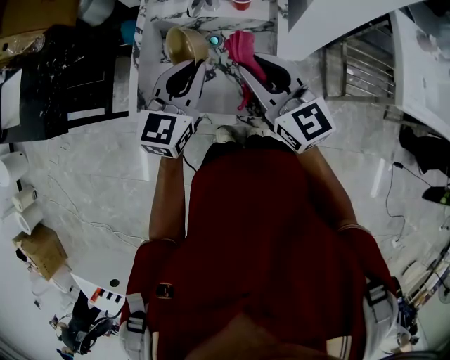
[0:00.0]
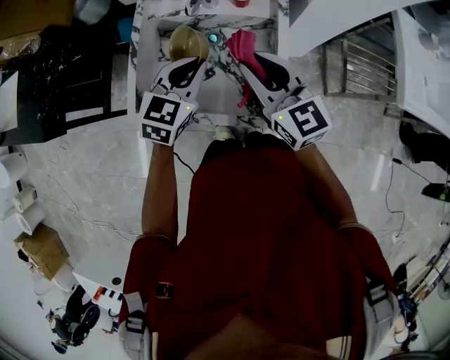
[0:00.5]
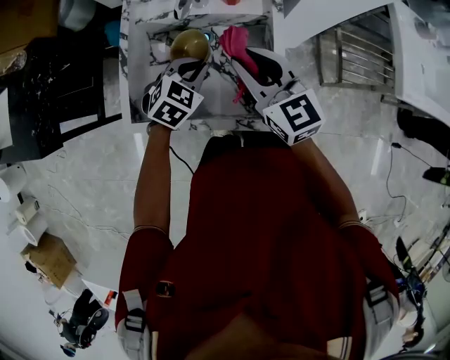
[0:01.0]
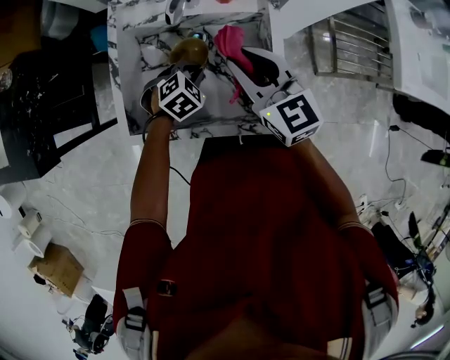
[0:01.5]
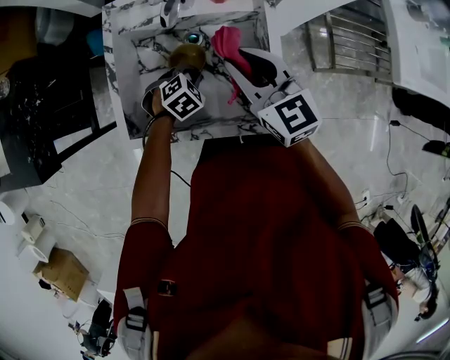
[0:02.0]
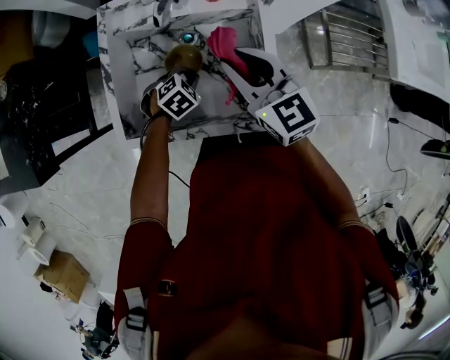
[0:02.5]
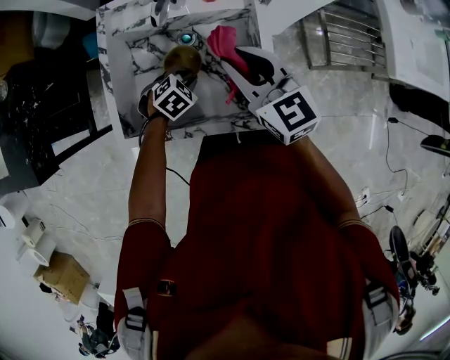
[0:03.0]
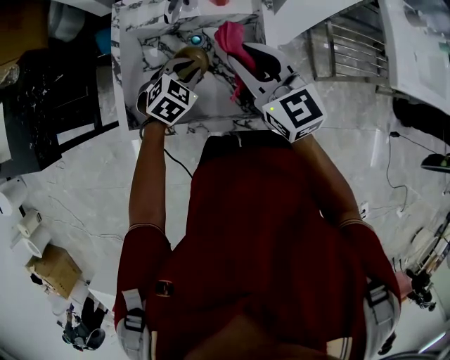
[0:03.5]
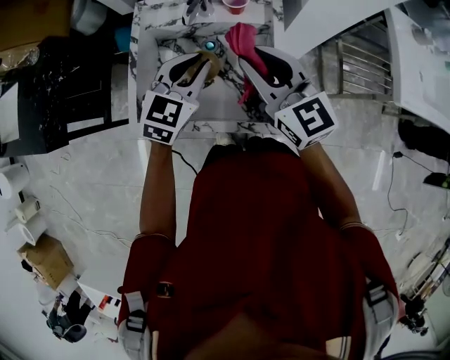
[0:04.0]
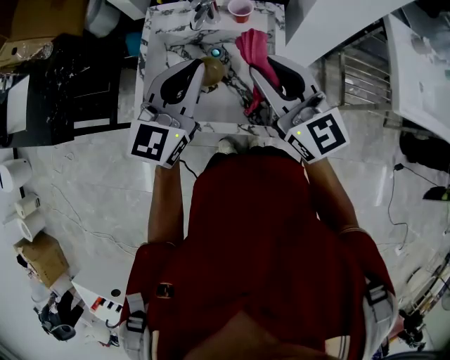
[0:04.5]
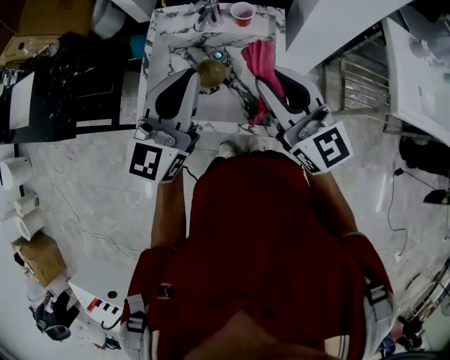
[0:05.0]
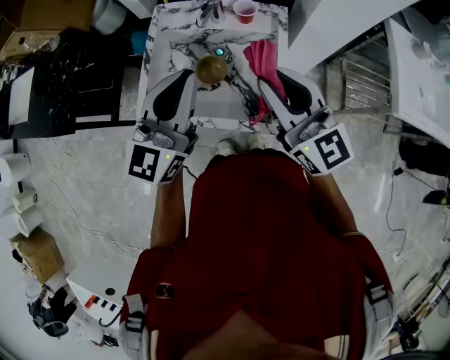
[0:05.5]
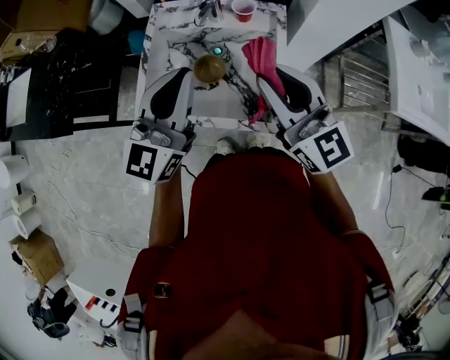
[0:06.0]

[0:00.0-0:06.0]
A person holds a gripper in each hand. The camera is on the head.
0:00.0 to 0:02.0: The left gripper heads downward, covering approximately 25 cm, and tilts its fingers approximately 50 degrees downward. The right gripper travels downward and forward by about 10 cm.
0:02.0 to 0:04.0: The left gripper is displaced upward by some 25 cm, and angles its fingers upward, by roughly 40 degrees. The right gripper is displaced upward by approximately 10 cm.
0:04.0 to 0:06.0: The left gripper shifts roughly 15 cm upward and backward, and tilts its fingers approximately 30 degrees upward. The right gripper shifts about 10 cm backward and upward.

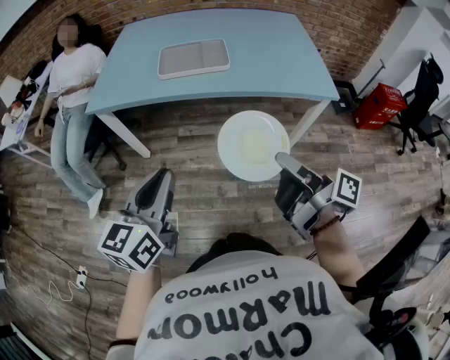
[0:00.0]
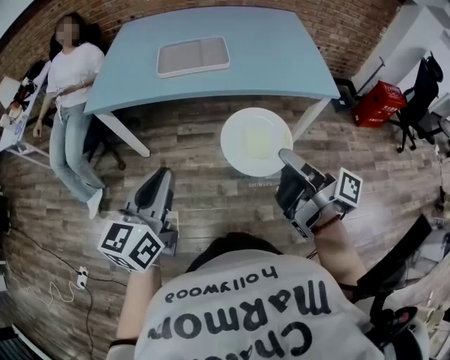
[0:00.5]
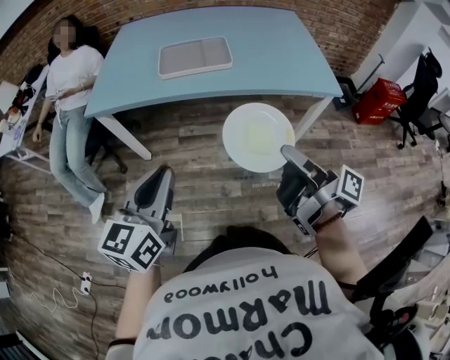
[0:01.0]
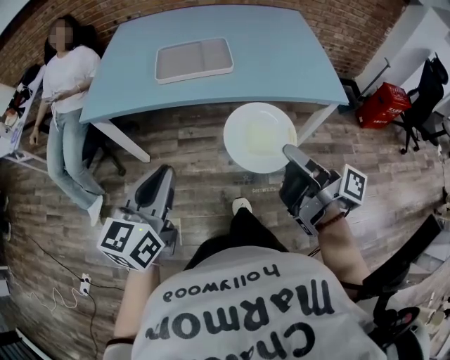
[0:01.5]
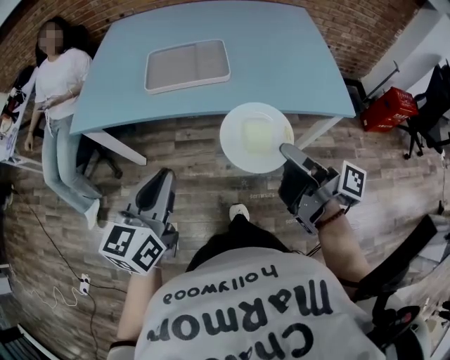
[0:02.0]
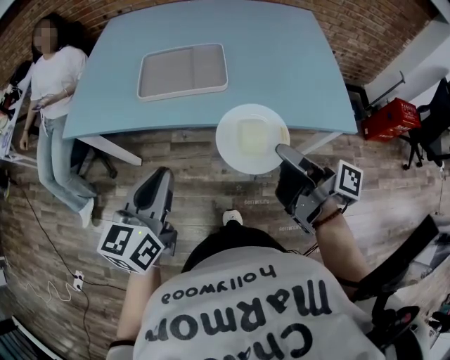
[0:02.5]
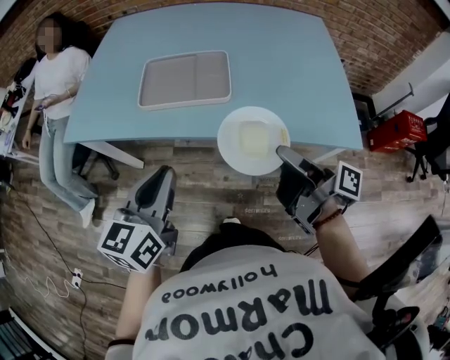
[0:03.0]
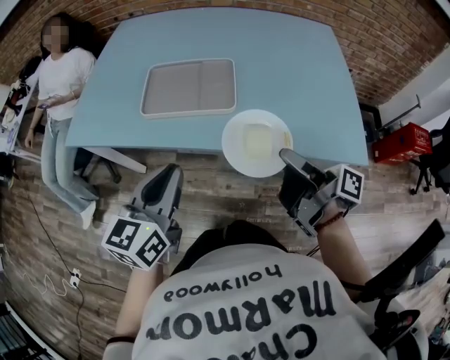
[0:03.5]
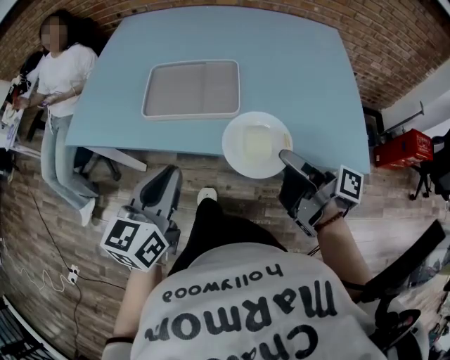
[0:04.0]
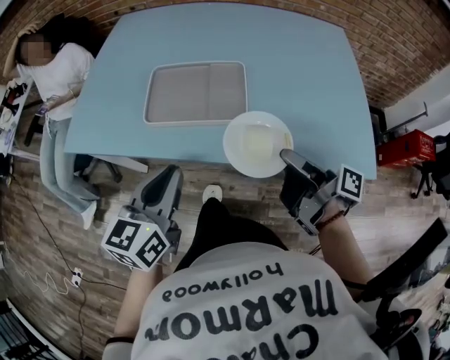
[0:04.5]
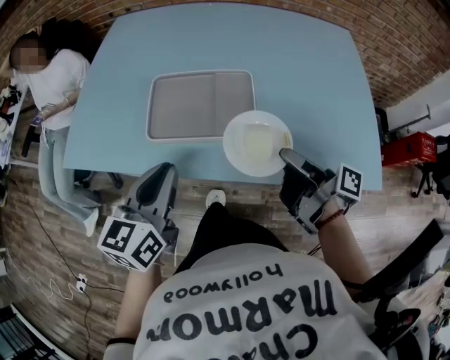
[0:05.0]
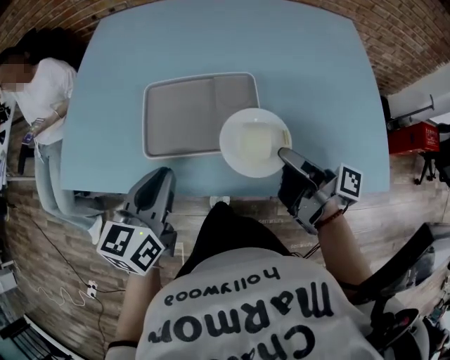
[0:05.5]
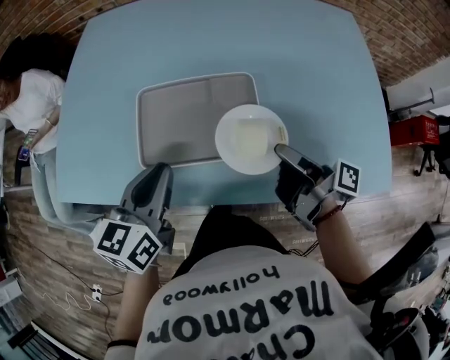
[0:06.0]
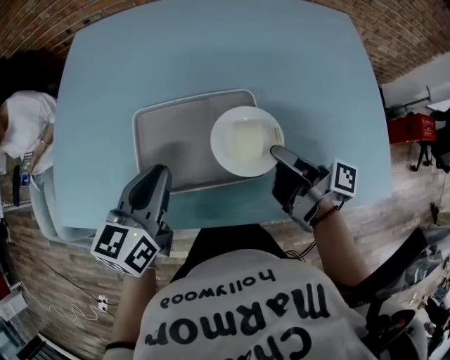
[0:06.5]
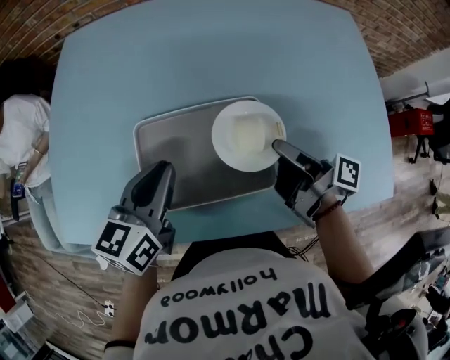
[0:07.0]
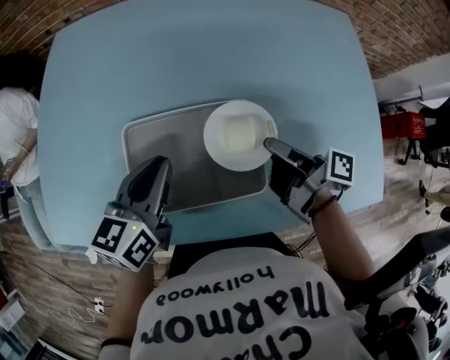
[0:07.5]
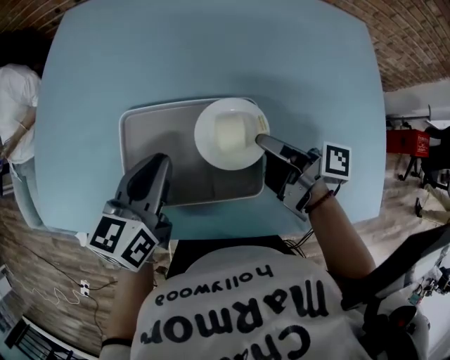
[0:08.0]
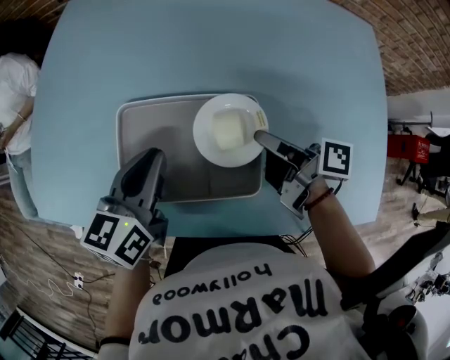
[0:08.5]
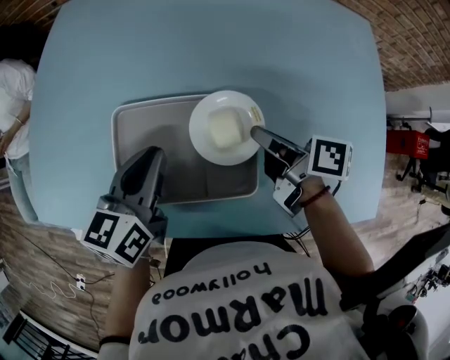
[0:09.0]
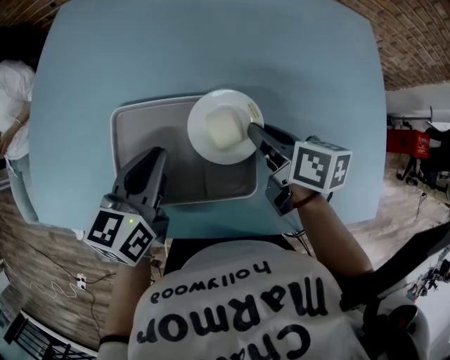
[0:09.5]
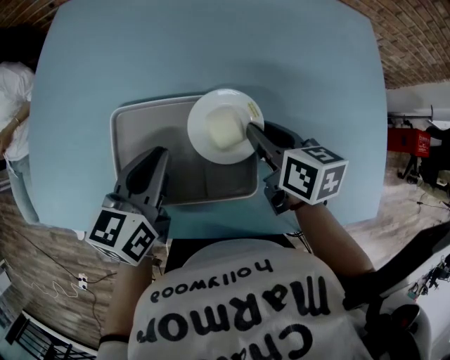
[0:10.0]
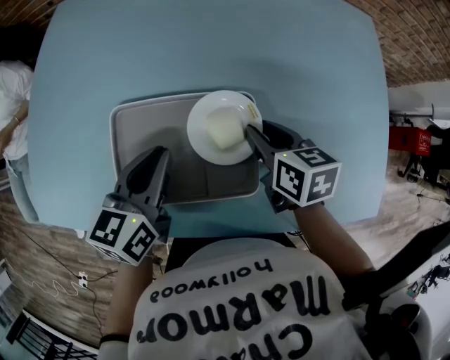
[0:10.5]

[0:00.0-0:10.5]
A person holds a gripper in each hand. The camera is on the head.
0:00.0 to 0:02.0: The left gripper moves some 15 cm.
0:02.0 to 0:04.0: The left gripper changes place by approximately 15 cm.
0:04.0 to 0:06.5: The left gripper changes place by some 25 cm.
0:06.5 to 0:08.5: The left gripper shifts by approximately 10 cm.

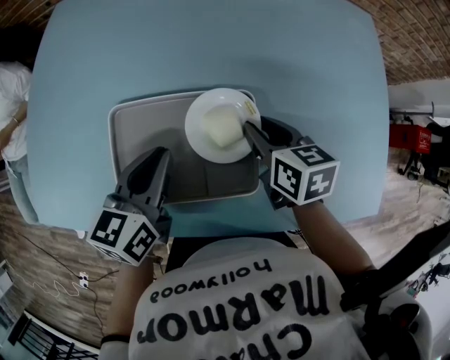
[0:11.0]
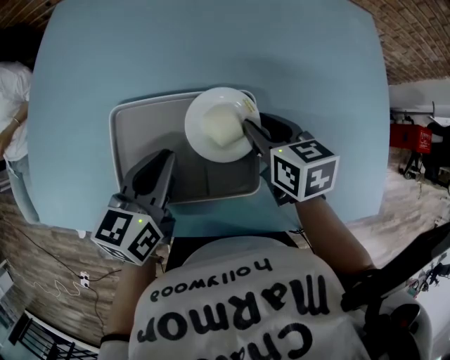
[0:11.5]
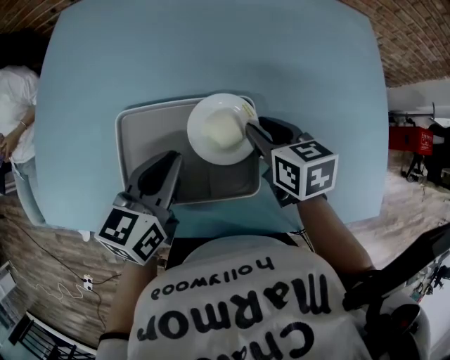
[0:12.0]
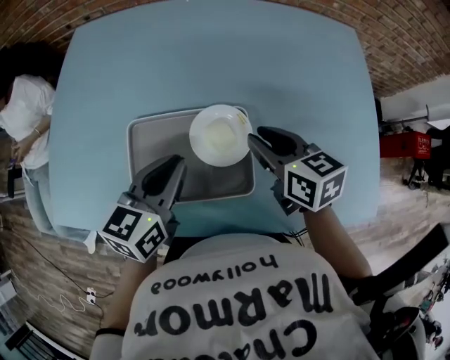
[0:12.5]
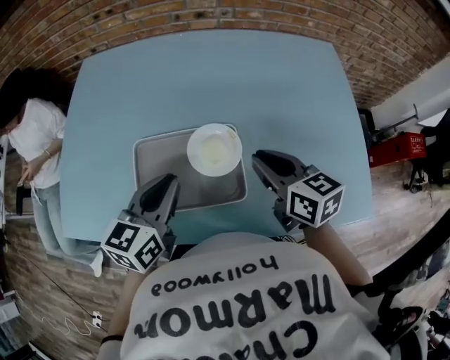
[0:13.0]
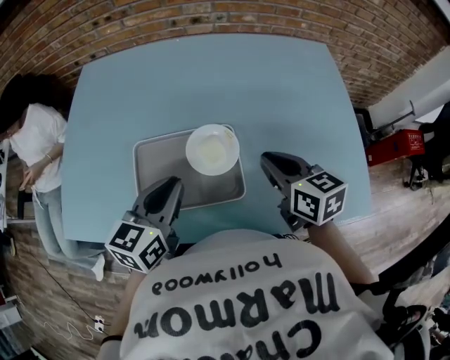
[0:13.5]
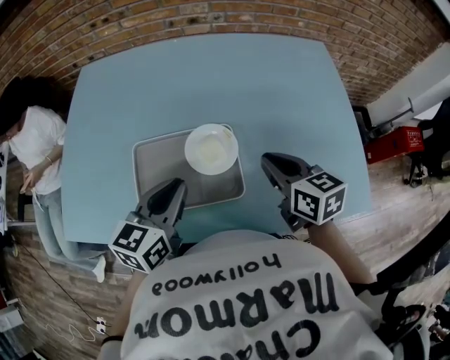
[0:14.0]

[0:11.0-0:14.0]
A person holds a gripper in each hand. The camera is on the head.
0:11.0 to 0:12.5: The left gripper moves upward, approximately 5 cm.
0:12.5 to 0:14.0: The left gripper moves about 5 cm.

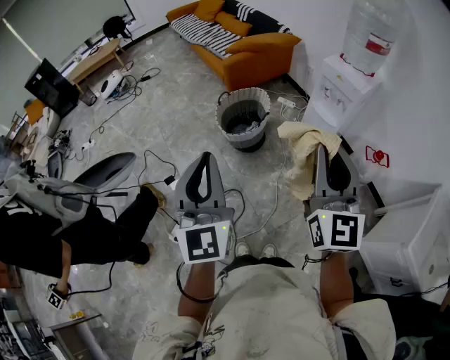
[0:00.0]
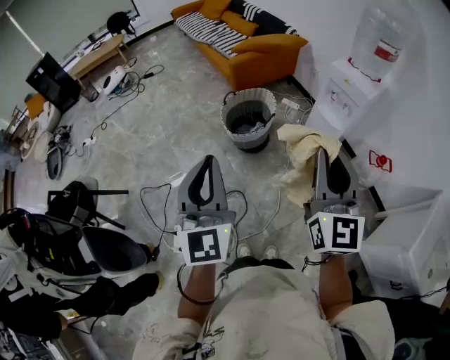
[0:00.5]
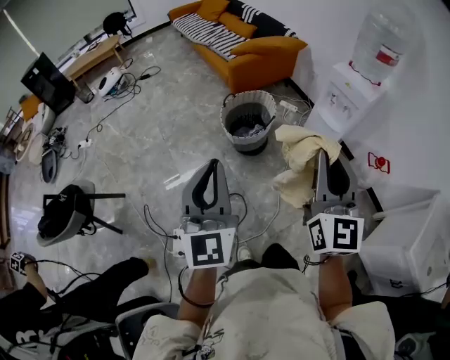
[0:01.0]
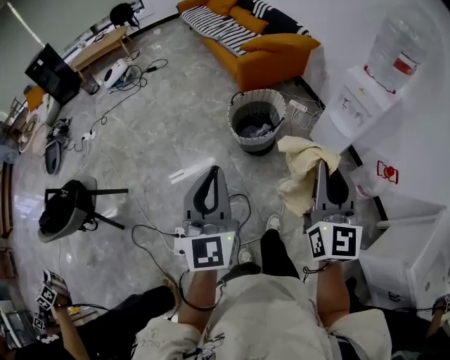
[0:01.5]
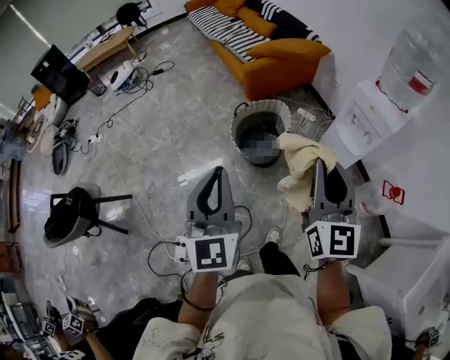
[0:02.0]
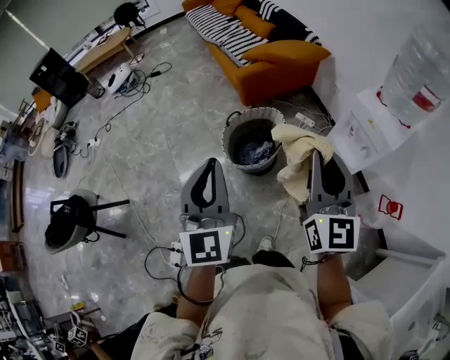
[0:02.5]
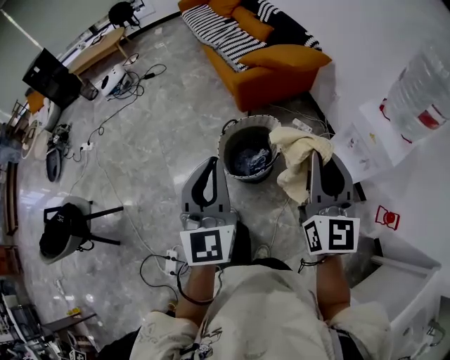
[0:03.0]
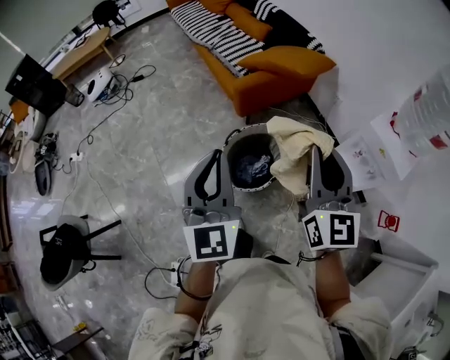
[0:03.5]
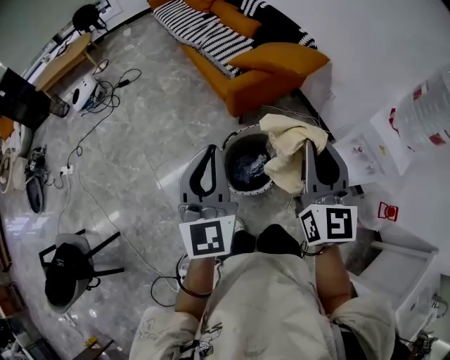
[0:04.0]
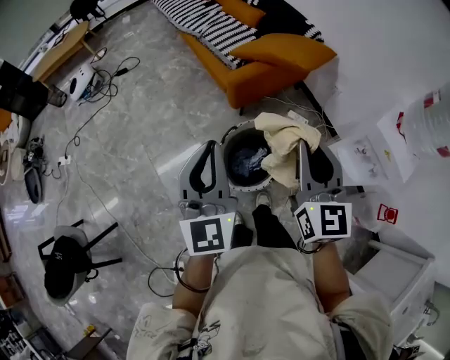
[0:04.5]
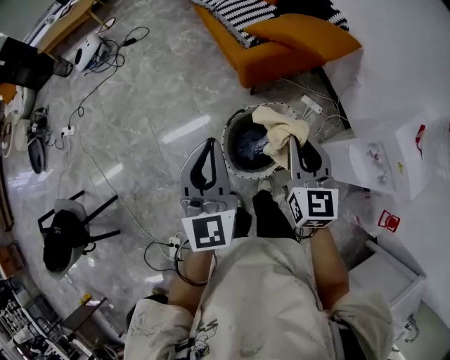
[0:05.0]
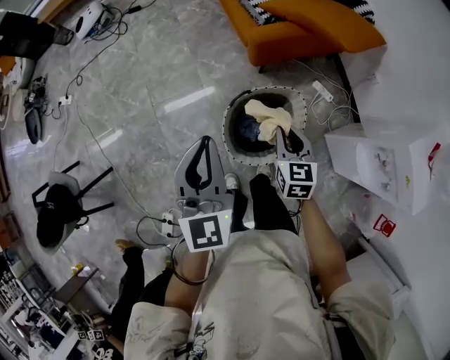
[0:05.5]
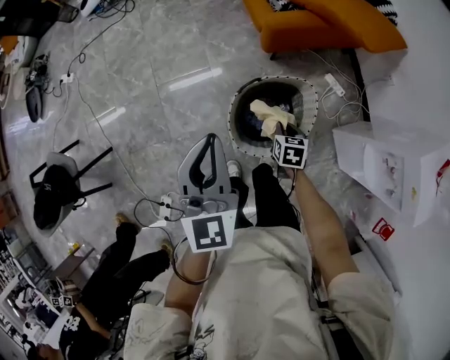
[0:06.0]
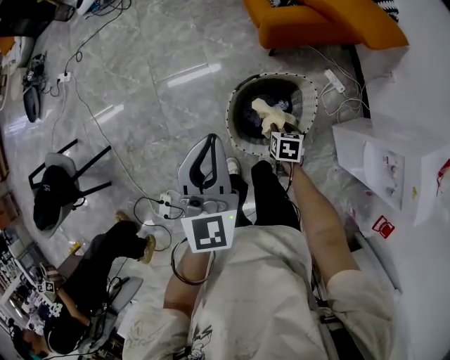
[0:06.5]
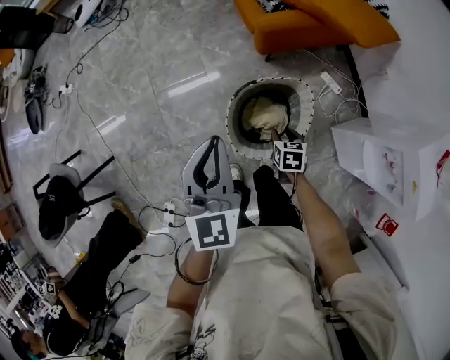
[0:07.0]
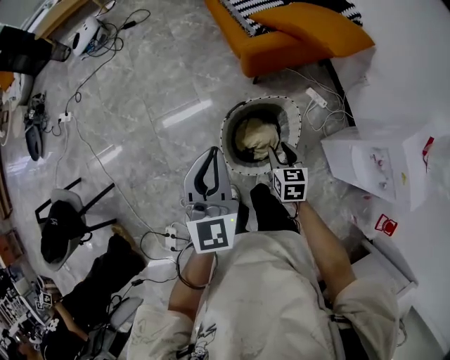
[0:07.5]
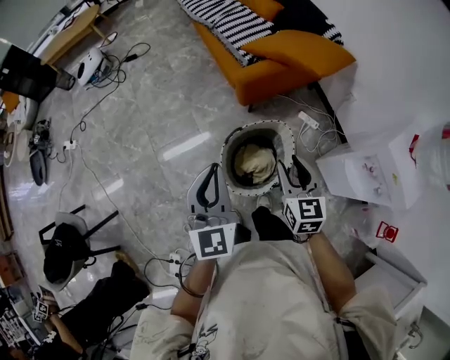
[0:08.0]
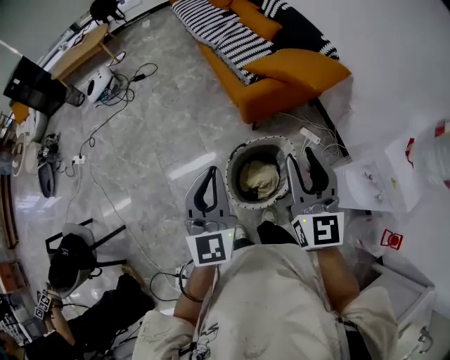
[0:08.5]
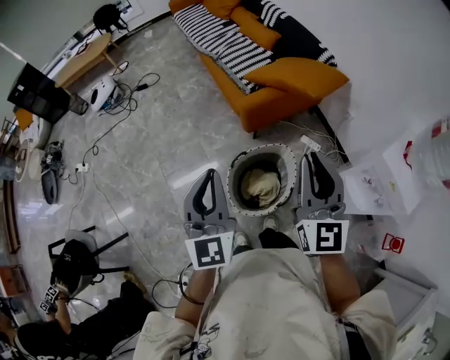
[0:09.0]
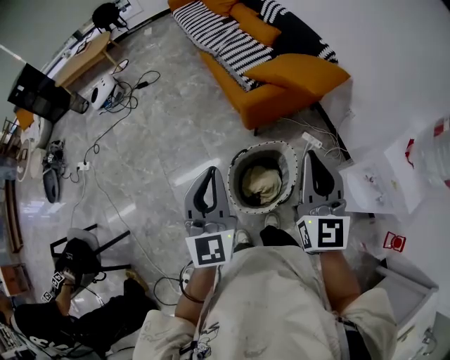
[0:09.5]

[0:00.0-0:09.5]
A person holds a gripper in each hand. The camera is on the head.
0:00.0 to 0:02.0: Both grippers travel together forward, about 20 cm.
0:02.0 to 0:04.0: Both grippers move forward, about 35 cm.
0:04.0 to 0:05.5: The right gripper shifts about 35 cm downward and forward, and angles its fingers downward, by approximately 30 degrees, while the left gripper moves downward and forward, about 15 cm.
0:05.5 to 0:07.5: The right gripper reaches about 20 cm downward, then returns, and opens up.
0:07.5 to 0:09.5: The right gripper travels upward by approximately 35 cm, points its fingers about 40 degrees further upward, and closes up. The left gripper moves upward, some 10 cm.
